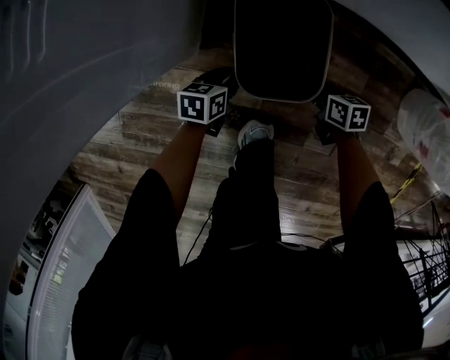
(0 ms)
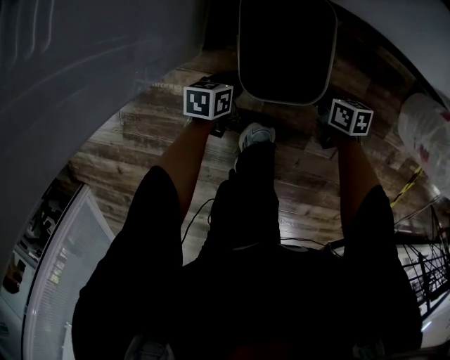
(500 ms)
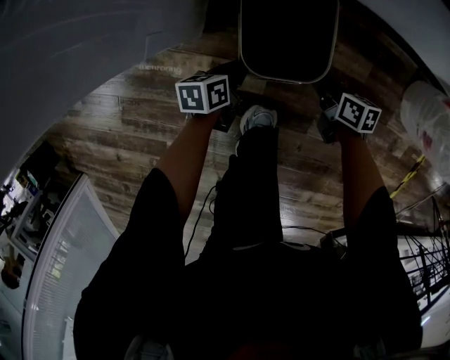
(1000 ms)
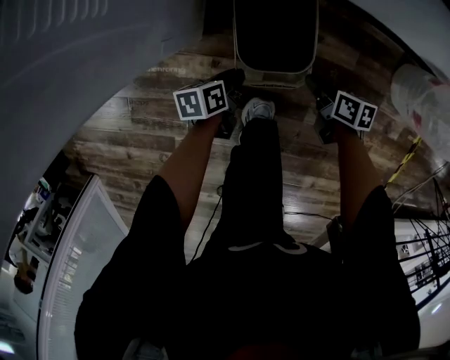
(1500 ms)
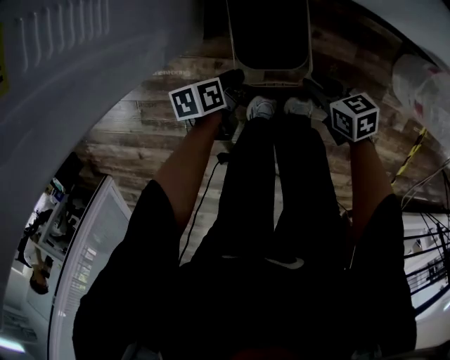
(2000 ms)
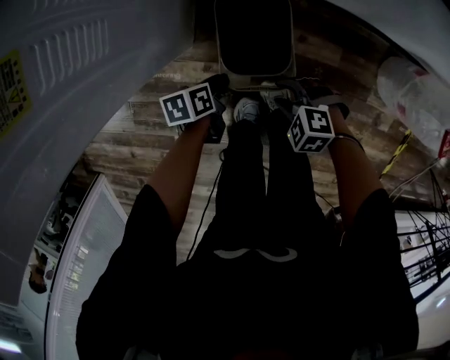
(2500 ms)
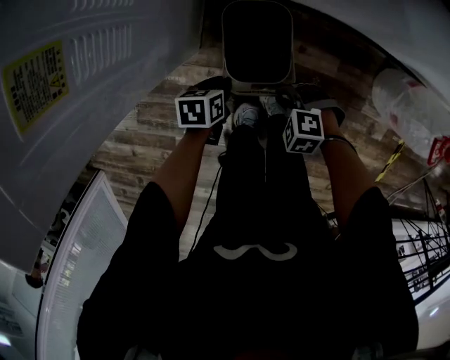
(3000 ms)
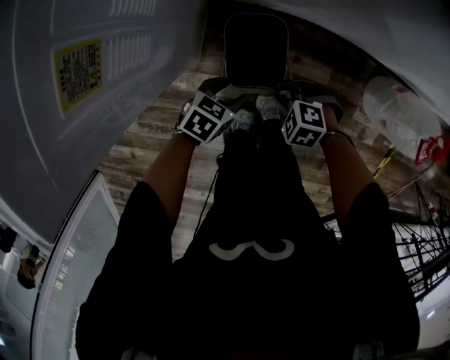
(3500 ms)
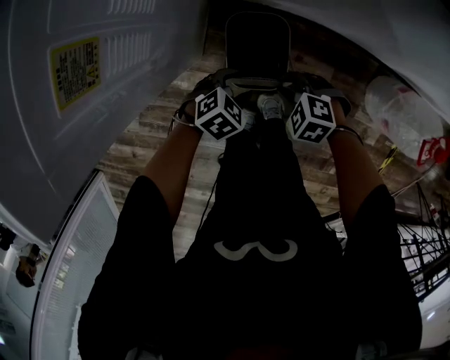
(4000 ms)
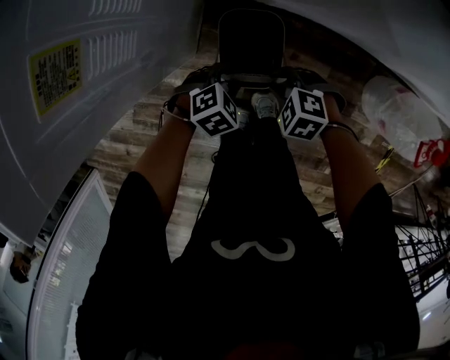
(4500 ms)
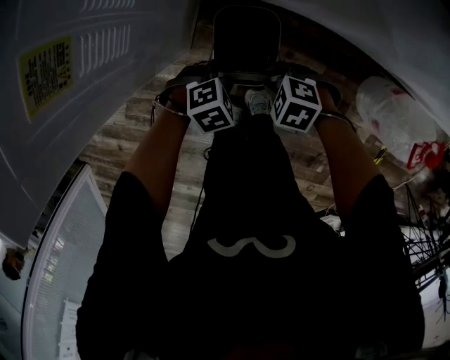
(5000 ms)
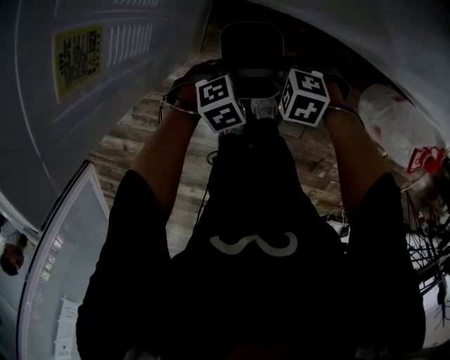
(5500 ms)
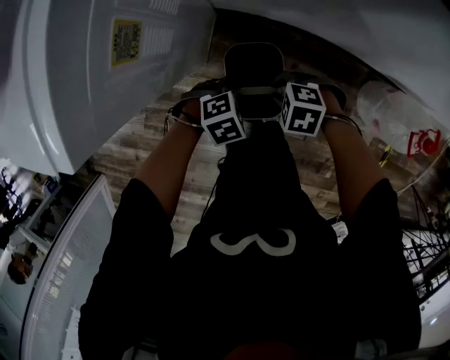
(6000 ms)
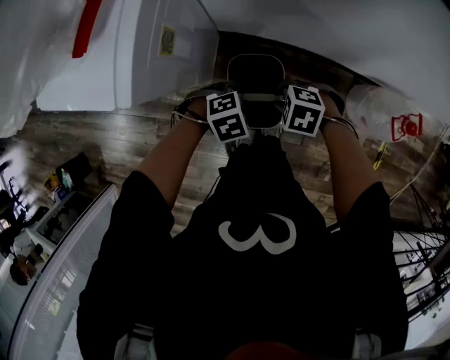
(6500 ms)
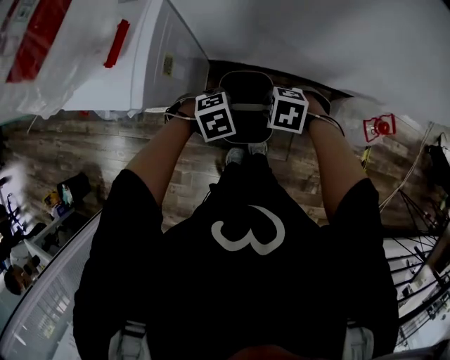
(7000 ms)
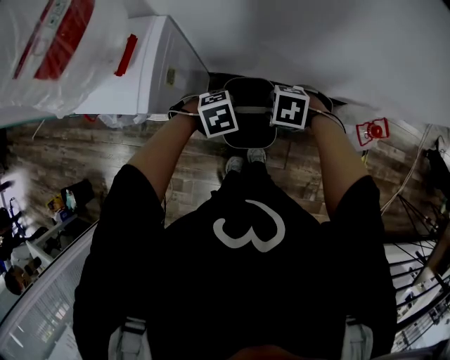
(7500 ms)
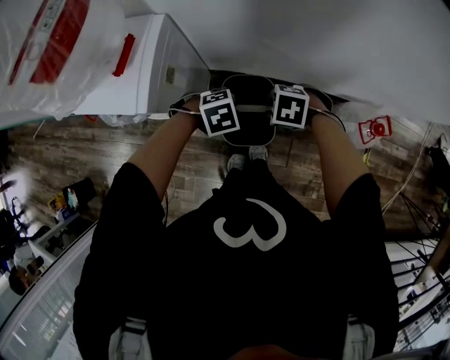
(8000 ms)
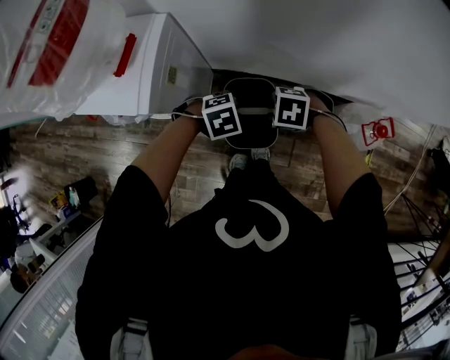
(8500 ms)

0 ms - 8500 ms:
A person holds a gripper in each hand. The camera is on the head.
0 ms - 2000 ms: Both grippers travel together upward, some 15 cm. The left gripper rotates some 20 degrees.
2000 ms - 4000 ms: The two grippers go roughly 10 cm upward. The right gripper twists approximately 60 degrees counterclockwise, seen from behind, while the left gripper twists approximately 70 degrees clockwise, seen from behind, and opens.
4000 ms - 6500 ms: The two grippers go roughly 20 cm upward. The left gripper swivels some 20 degrees, and closes up.
6500 ms - 8500 ms: Both grippers travel together upward, about 15 cm.

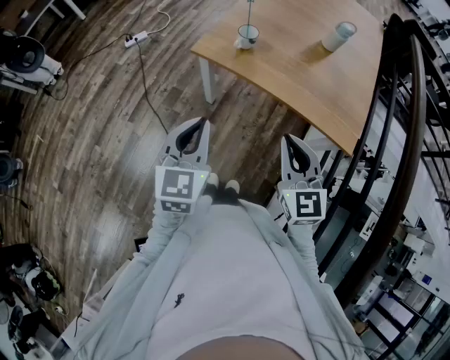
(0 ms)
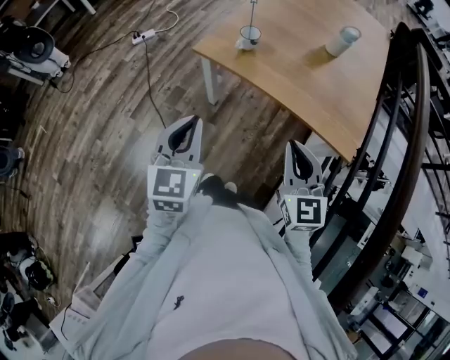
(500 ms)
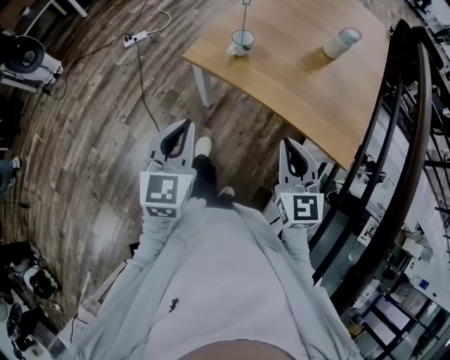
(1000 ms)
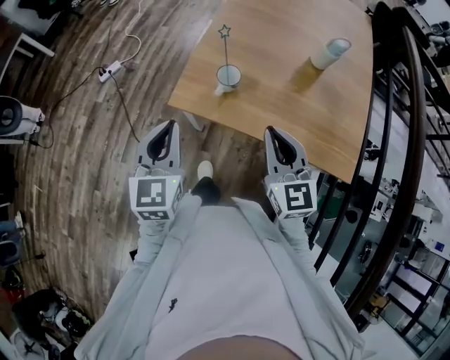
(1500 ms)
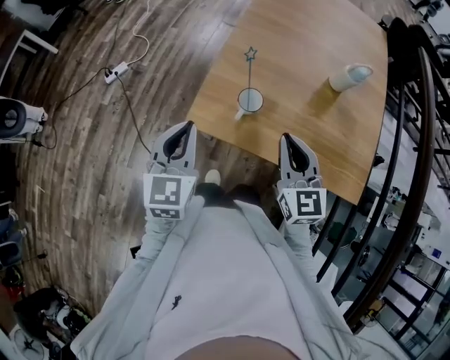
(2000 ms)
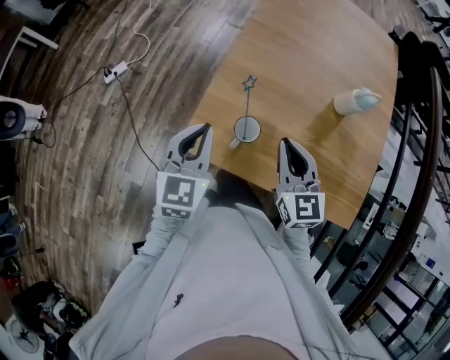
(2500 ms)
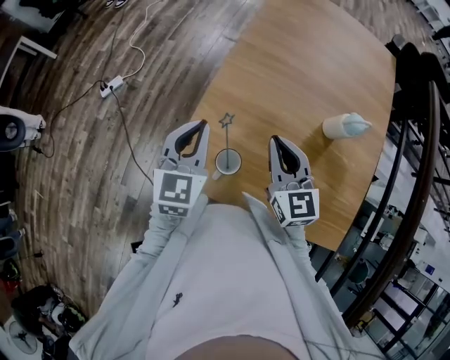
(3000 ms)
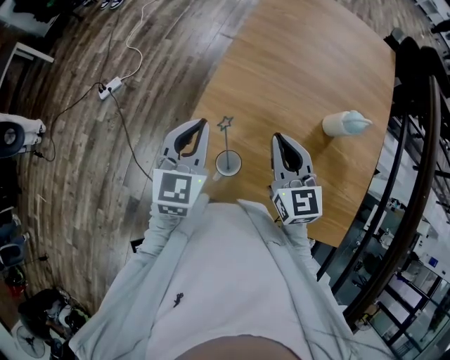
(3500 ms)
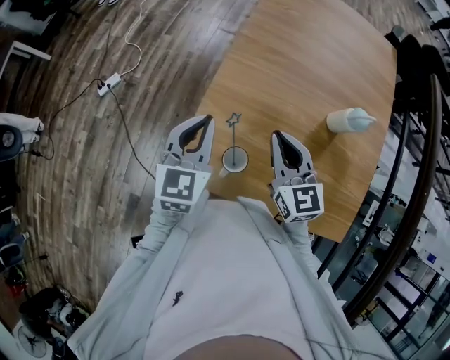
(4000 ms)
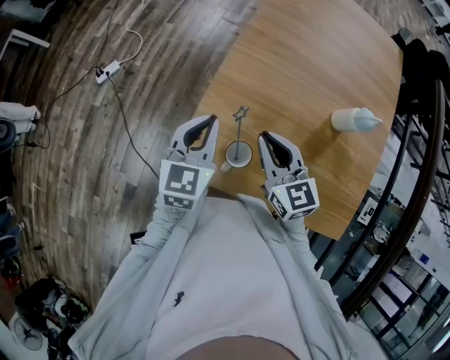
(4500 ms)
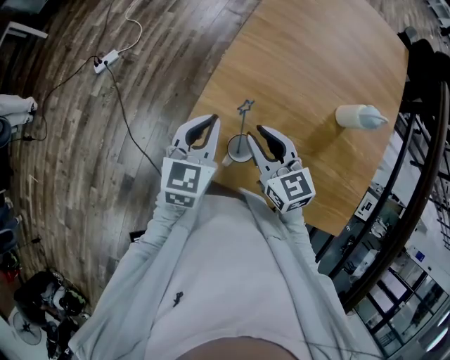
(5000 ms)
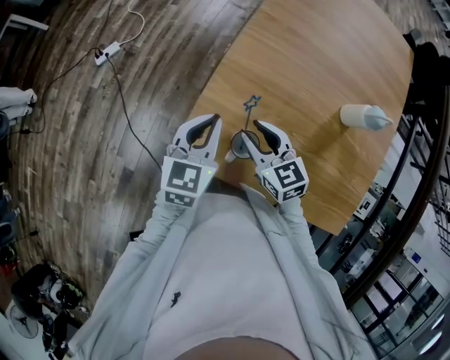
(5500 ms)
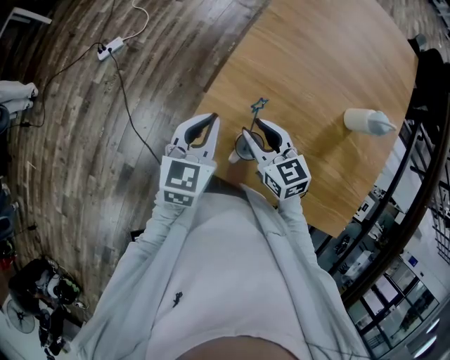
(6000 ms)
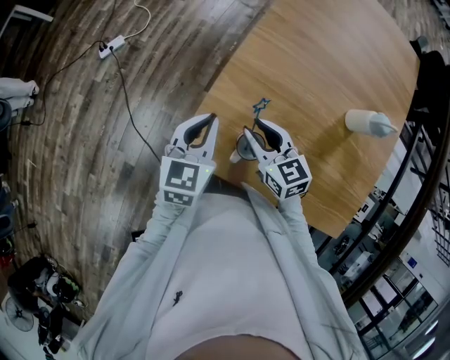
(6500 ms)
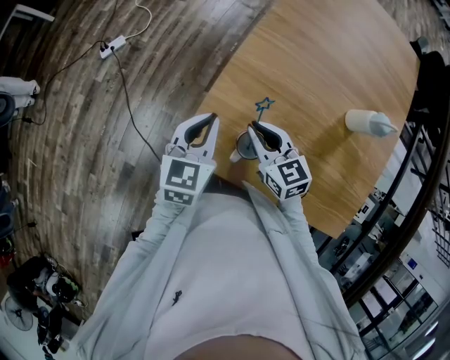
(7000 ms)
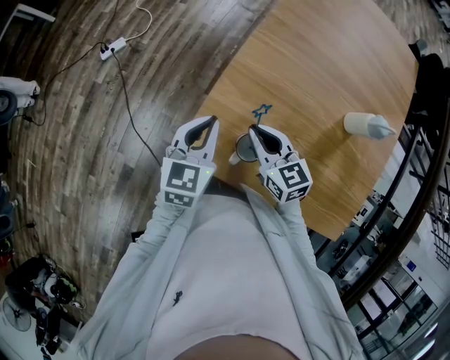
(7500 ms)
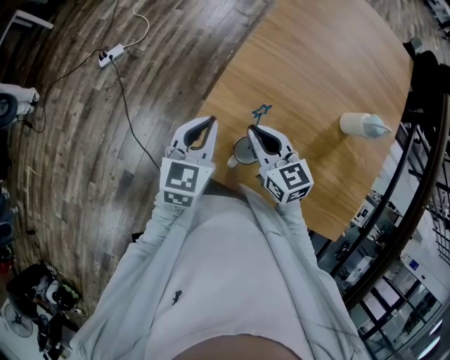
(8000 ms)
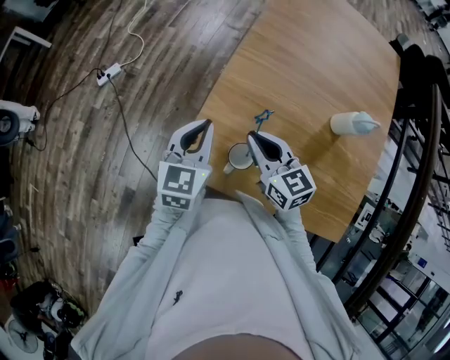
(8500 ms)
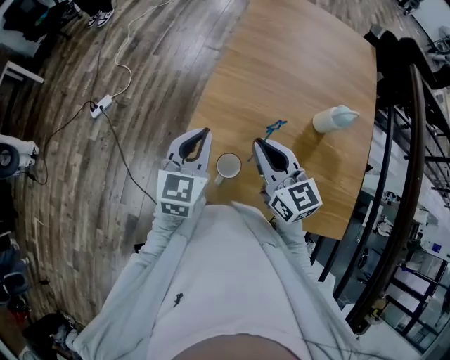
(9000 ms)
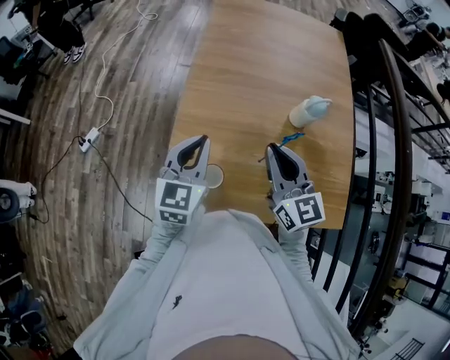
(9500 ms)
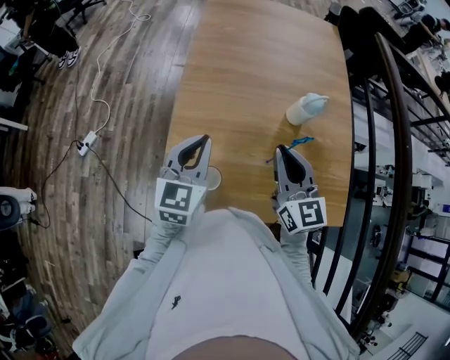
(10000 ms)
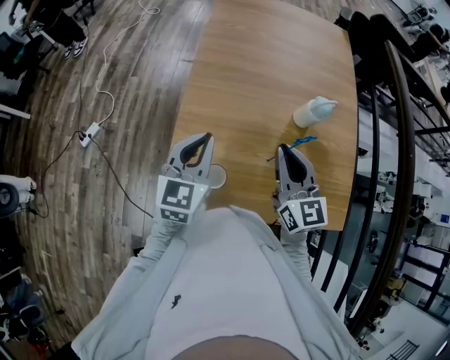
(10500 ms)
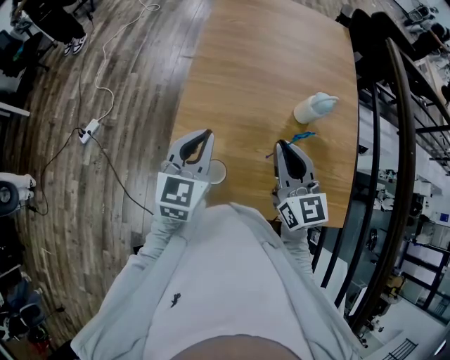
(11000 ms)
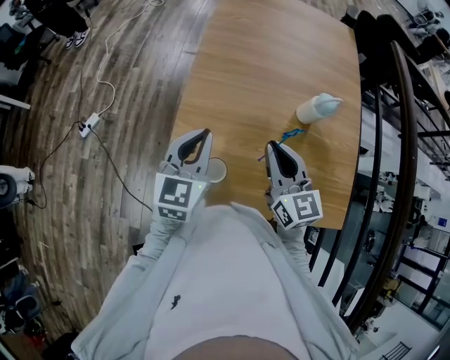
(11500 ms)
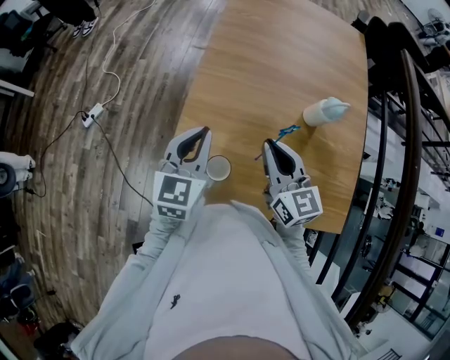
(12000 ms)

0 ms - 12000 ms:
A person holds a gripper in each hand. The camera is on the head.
0 ms - 2000 ms: The grippers both shift forward by some 30 cm.
2000 ms - 4000 ms: The left gripper goes some 20 cm forward and to the right; the right gripper travels forward by about 20 cm.
4000 ms - 6000 ms: The left gripper travels downward by some 10 cm, while the right gripper heads downward and to the left, covering roughly 15 cm, swivels roughly 30 degrees, and opens up.
6000 ms - 8000 ms: The right gripper closes.
8000 ms - 10000 ms: The right gripper moves approximately 25 cm, and turns by approximately 40 degrees. Meanwhile the left gripper ends up about 15 cm from where it was, and rotates about 20 degrees.
10000 ms - 12000 ms: The right gripper moves to the left, approximately 5 cm.

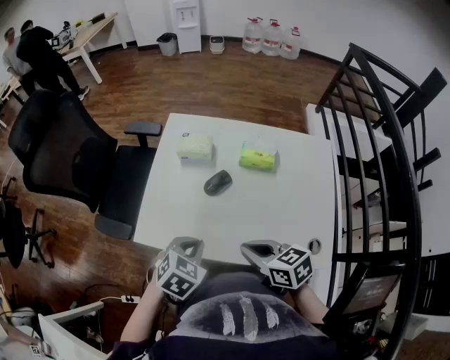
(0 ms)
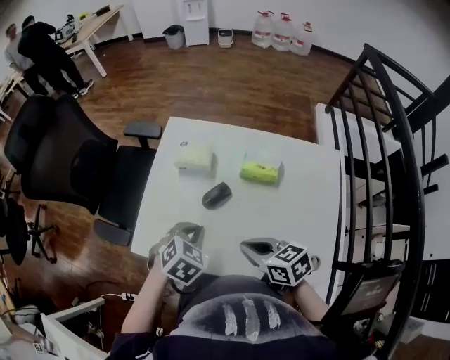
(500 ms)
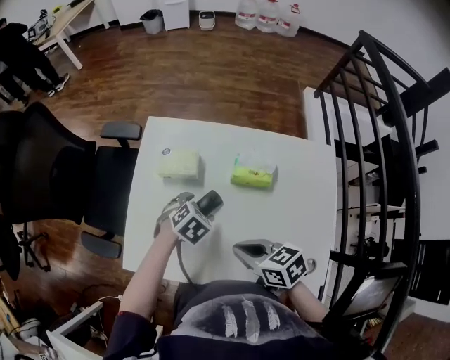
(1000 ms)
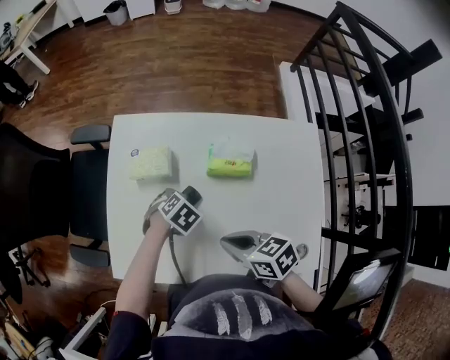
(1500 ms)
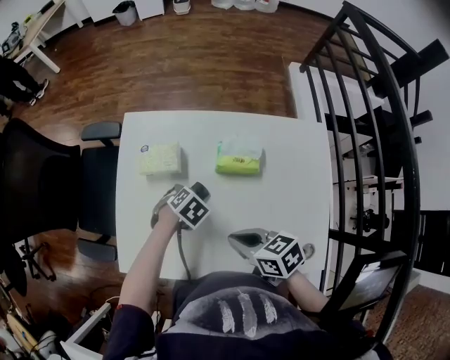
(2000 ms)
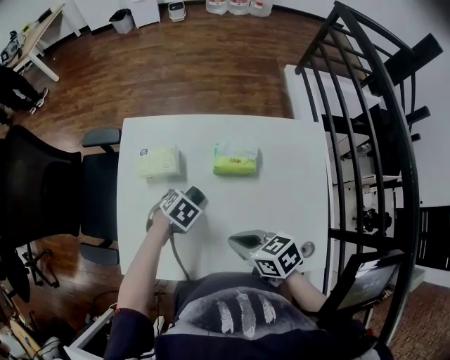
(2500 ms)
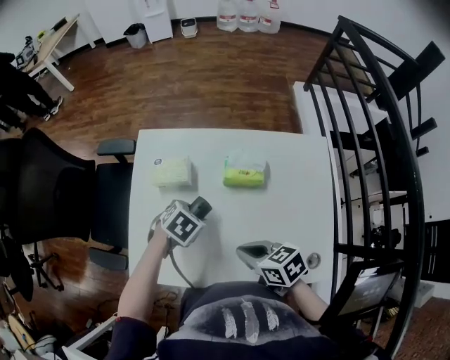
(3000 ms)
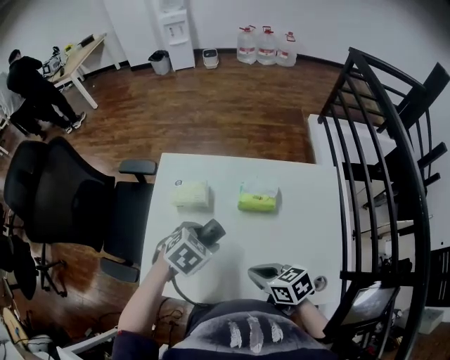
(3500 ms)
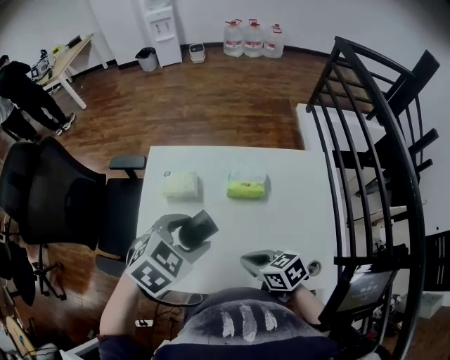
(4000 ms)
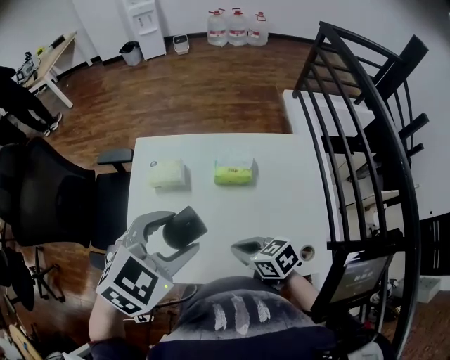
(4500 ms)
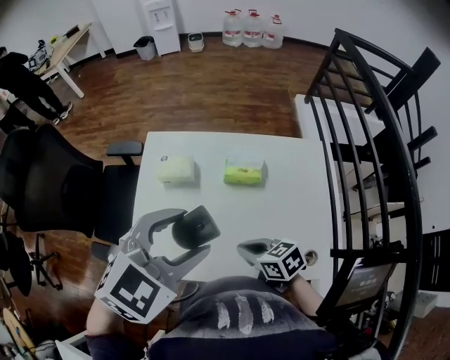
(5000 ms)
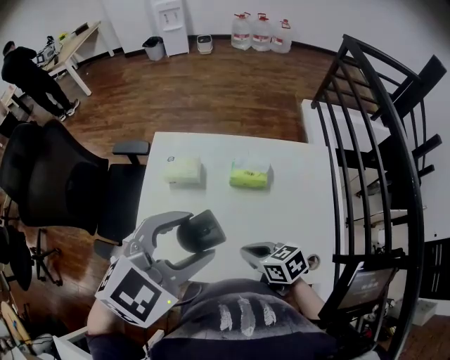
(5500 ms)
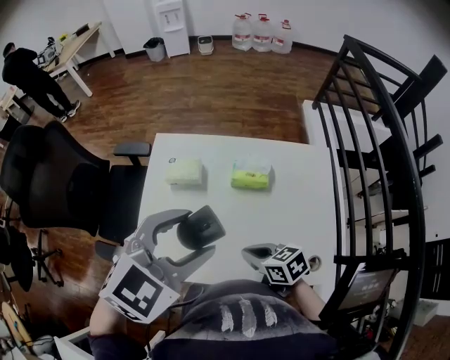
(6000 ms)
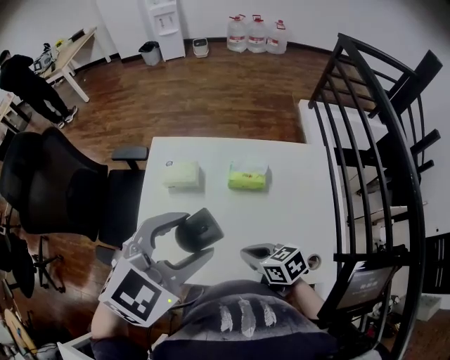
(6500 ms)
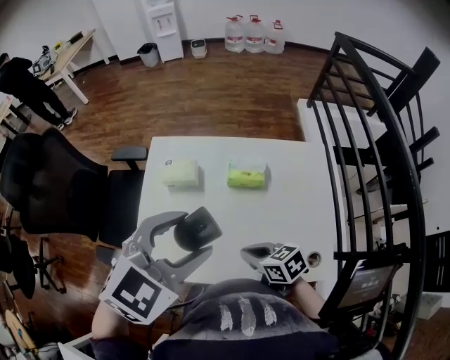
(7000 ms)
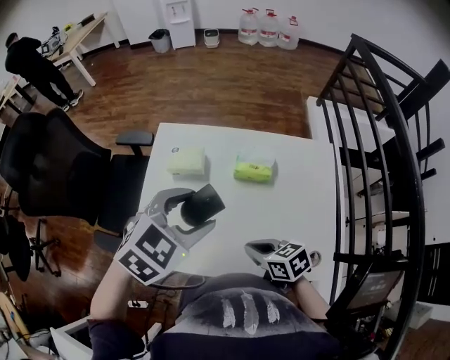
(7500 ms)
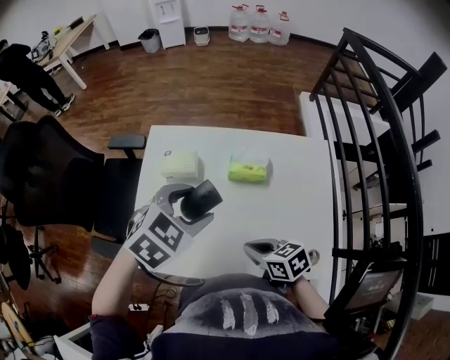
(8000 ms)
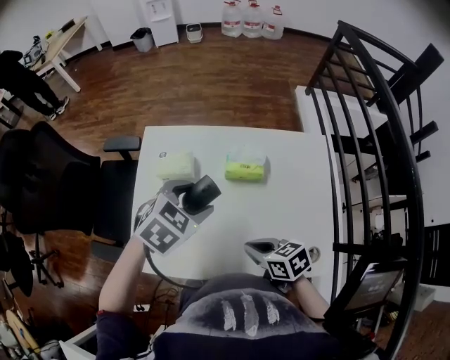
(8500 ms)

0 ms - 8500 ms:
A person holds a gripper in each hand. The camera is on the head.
0 ms - 2000 ms: The right gripper changes place by some 15 cm. The left gripper changes place by roughly 30 cm, swivels roughly 30 degrees, and opens.
2000 ms - 4000 ms: The left gripper moves upward, approximately 30 cm, and turns by some 30 degrees. The right gripper moves about 5 cm.
4000 ms - 6500 ms: The left gripper moves upward, about 10 cm, and swivels roughly 20 degrees.
6500 ms - 8500 ms: The left gripper is displaced downward and forward by about 20 cm, and changes its angle by roughly 20 degrees.
